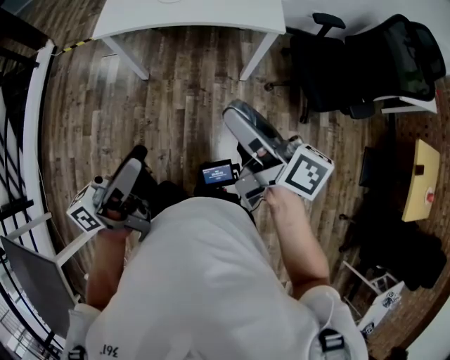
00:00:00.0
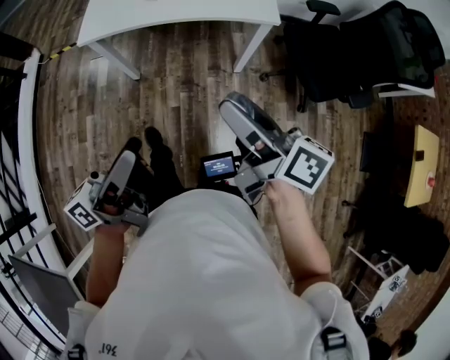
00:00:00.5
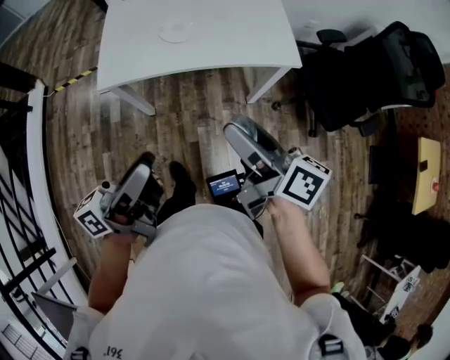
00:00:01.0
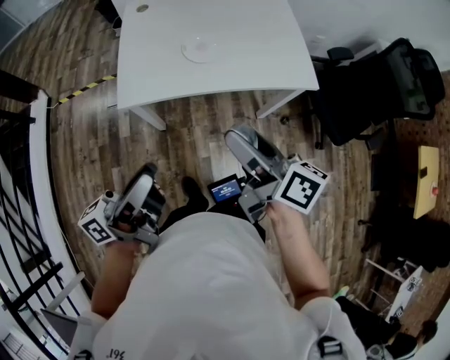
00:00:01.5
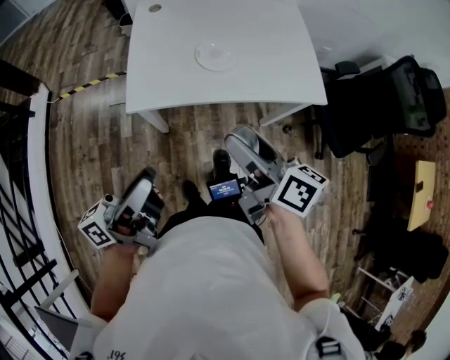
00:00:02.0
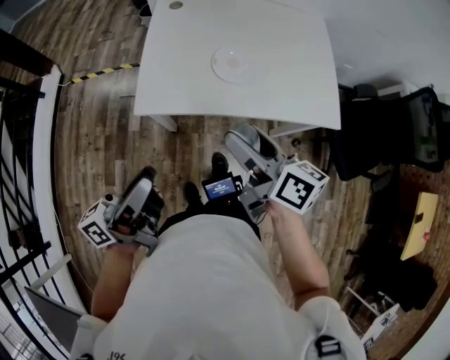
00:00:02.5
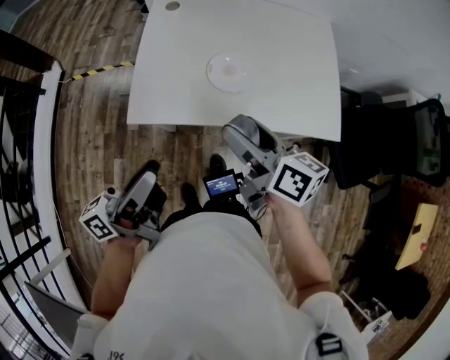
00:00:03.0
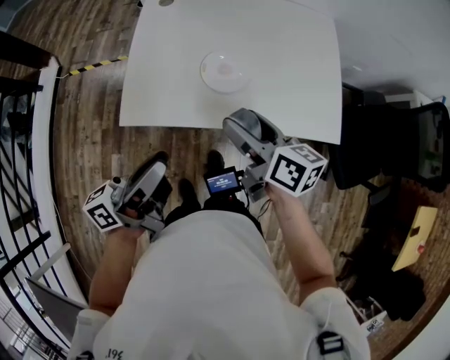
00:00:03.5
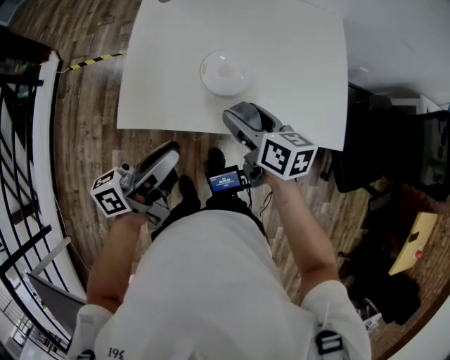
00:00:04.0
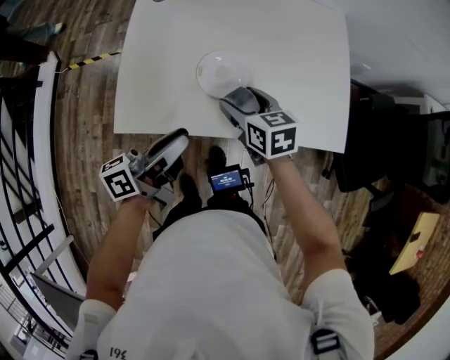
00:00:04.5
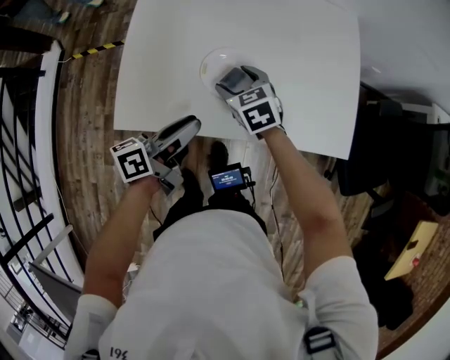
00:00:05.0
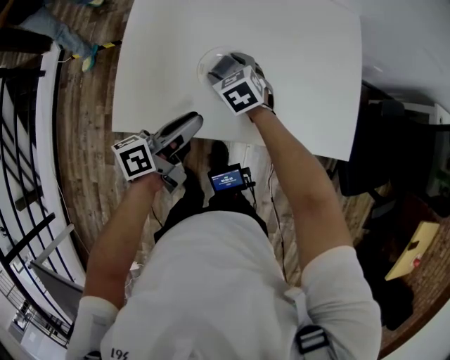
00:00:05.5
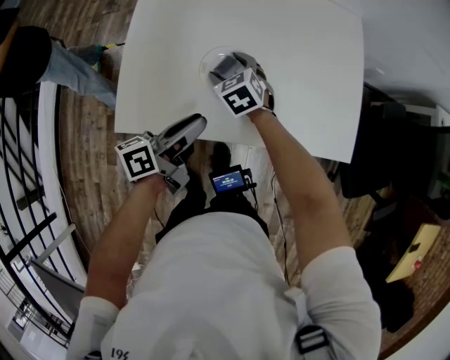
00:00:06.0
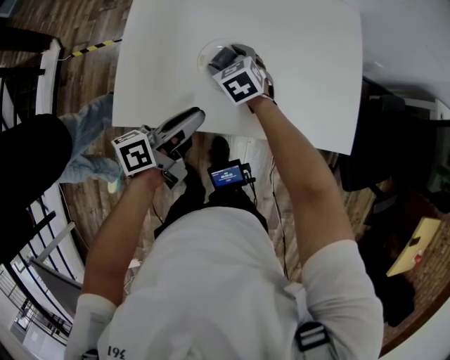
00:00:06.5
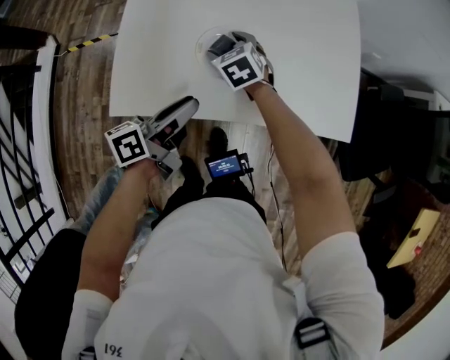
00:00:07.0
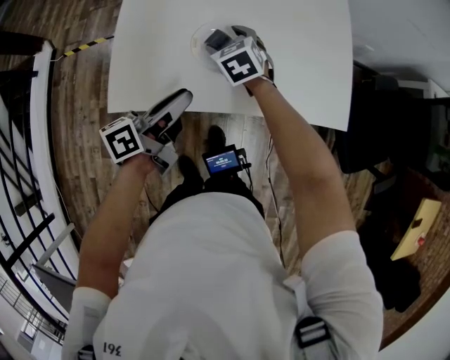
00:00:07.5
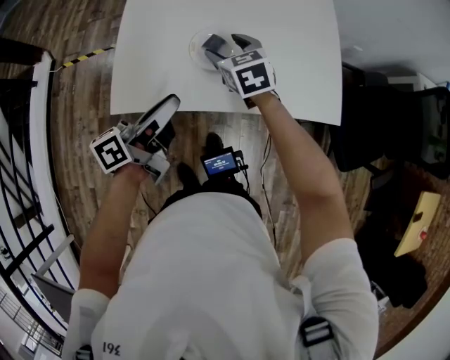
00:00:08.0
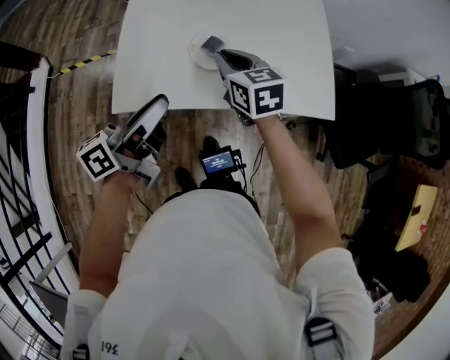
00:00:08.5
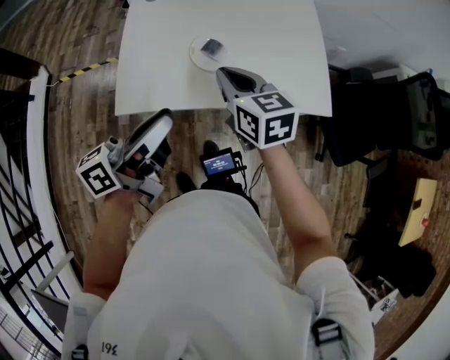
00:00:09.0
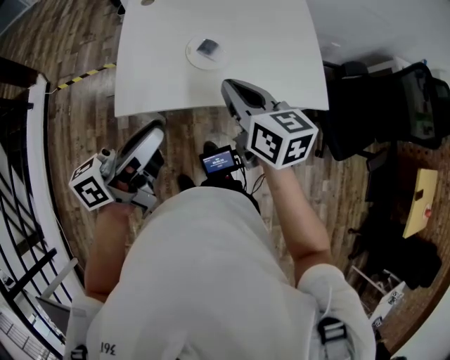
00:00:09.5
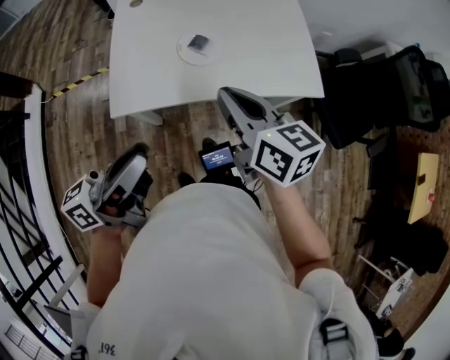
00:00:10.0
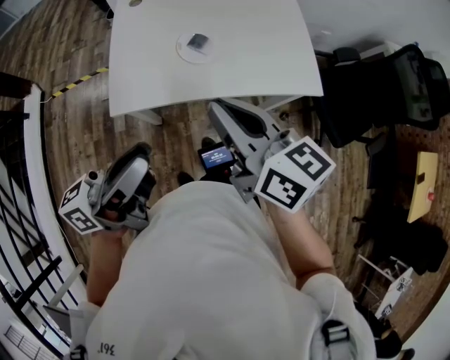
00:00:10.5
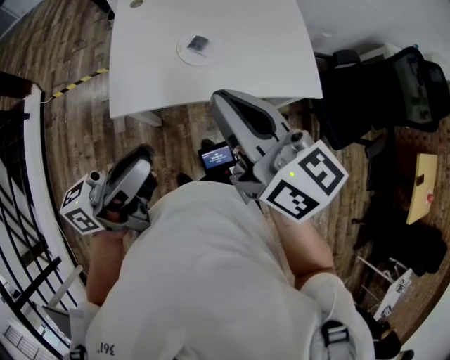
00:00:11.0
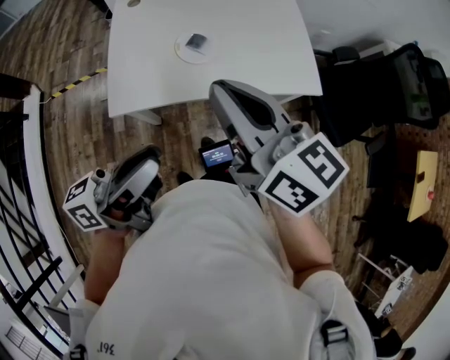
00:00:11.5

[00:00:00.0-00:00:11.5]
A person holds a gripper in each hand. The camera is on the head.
00:00:00.0 to 00:00:02.0: Both grippers move to the left and forward, about 35 cm.
00:00:02.0 to 00:00:04.0: The left gripper is displaced forward and to the right by approximately 20 cm. Meanwhile the right gripper shifts about 25 cm forward and downward, and changes its angle by about 20 degrees.
00:00:04.0 to 00:00:06.0: The right gripper is displaced forward, downward and to the left by about 20 cm, and twists about 50 degrees counterclockwise, seen from behind; the left gripper is displaced downward and forward by some 15 cm.
00:00:06.0 to 00:00:07.5: There are only small adjustments of the grippers.
00:00:07.5 to 00:00:09.5: The right gripper moves backward and upward, roughly 30 cm, changes its angle by roughly 40 degrees, and closes up. The left gripper moves upward and backward, about 20 cm, and turns by some 20 degrees.
00:00:09.5 to 00:00:11.5: The left gripper travels backward by roughly 5 cm, while the right gripper travels upward and backward by roughly 15 cm.

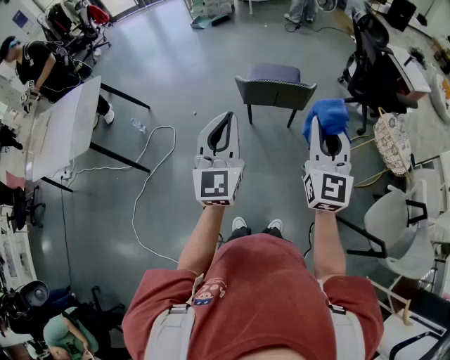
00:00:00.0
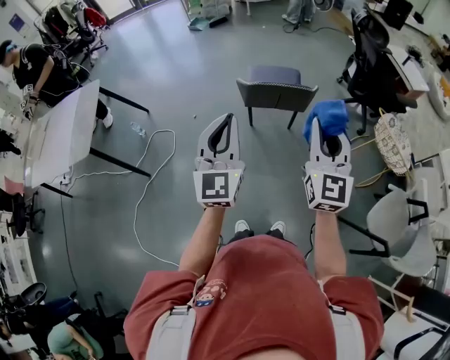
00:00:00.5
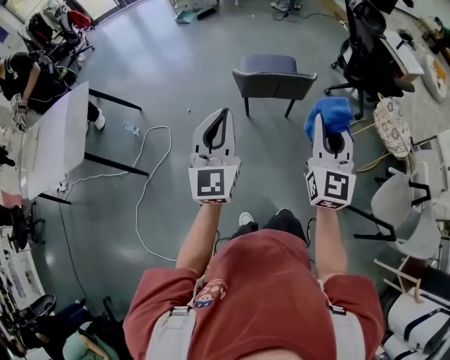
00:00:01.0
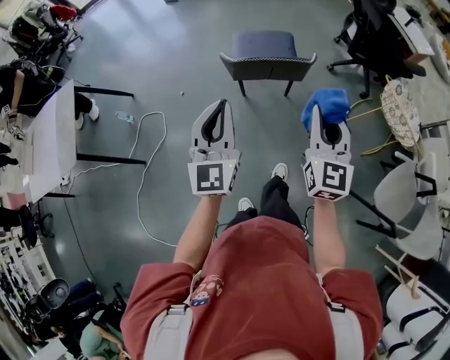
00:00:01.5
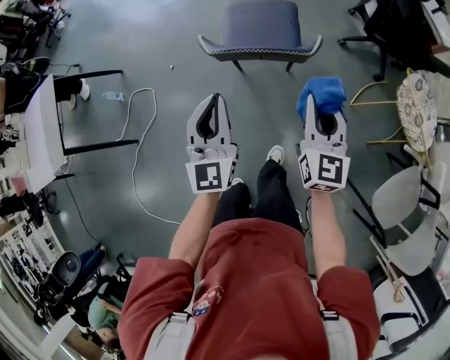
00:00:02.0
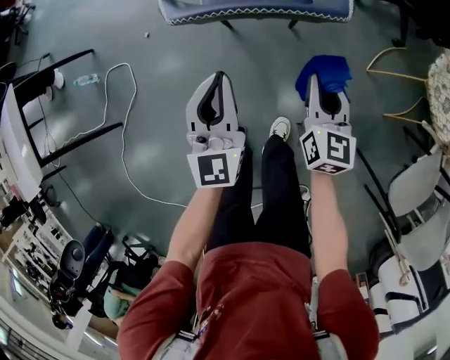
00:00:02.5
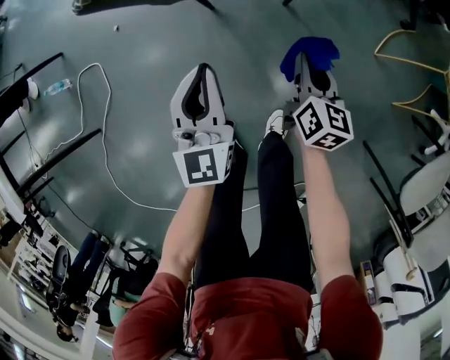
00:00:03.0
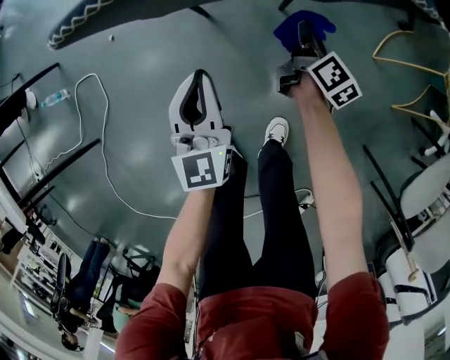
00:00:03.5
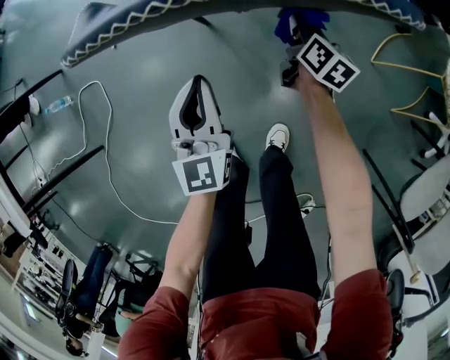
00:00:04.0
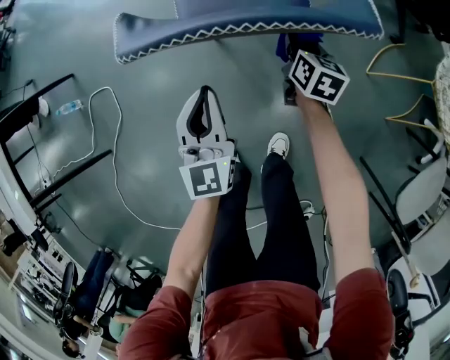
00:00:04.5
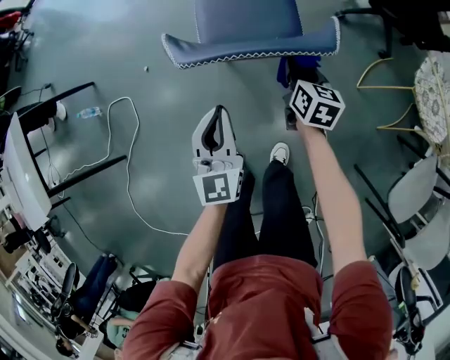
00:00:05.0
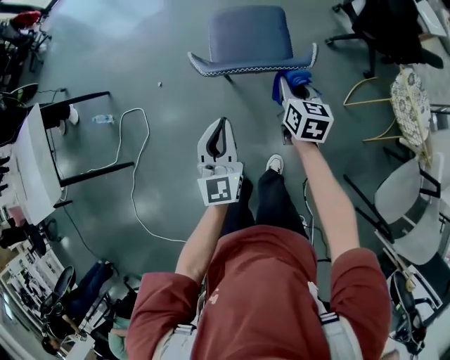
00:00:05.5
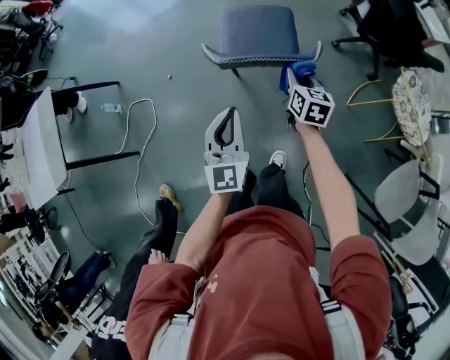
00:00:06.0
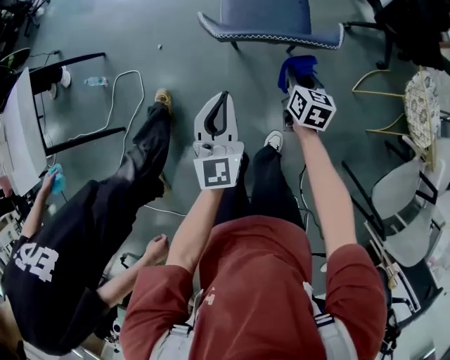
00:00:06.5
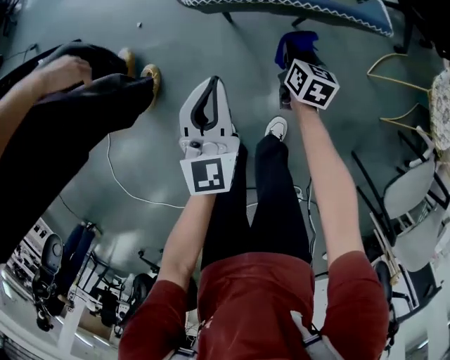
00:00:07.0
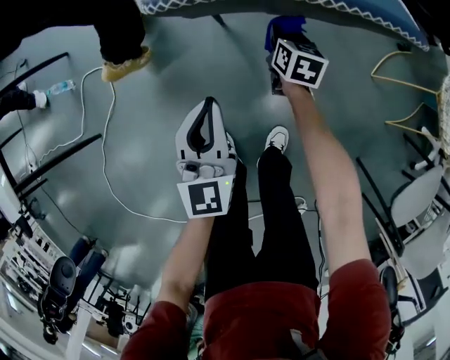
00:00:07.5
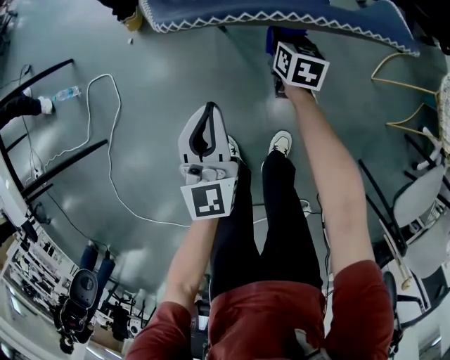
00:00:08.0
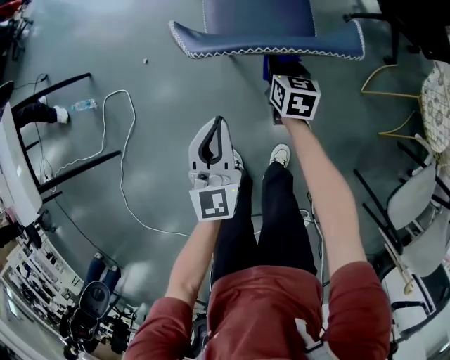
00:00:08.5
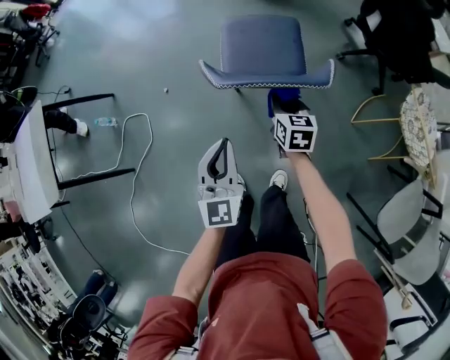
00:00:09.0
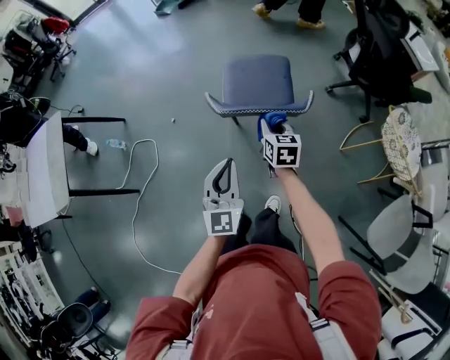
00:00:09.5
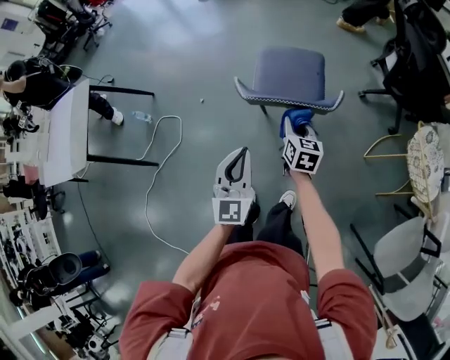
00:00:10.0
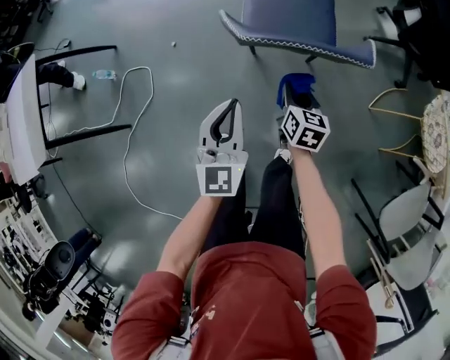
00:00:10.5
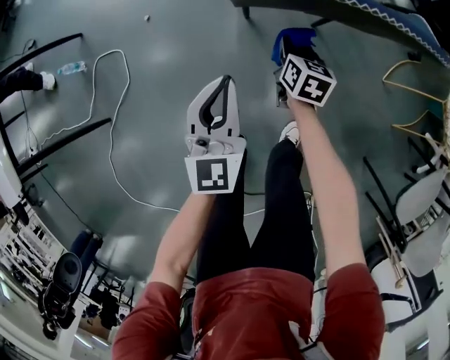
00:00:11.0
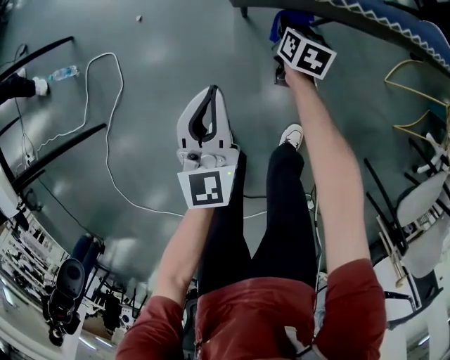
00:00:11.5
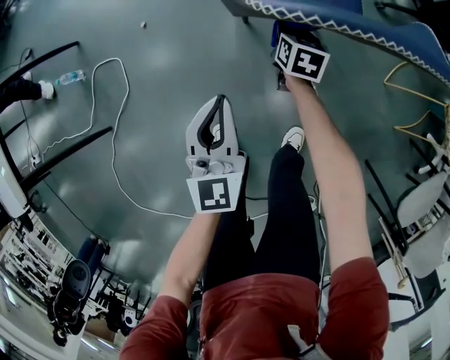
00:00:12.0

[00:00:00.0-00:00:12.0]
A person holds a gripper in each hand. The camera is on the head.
00:00:00.0 to 00:00:02.0: The left gripper is displaced forward and downward by some 30 cm; the right gripper moves downward and forward, some 30 cm, and changes its angle by approximately 20 degrees.
00:00:02.0 to 00:00:04.0: The right gripper is displaced downward and forward by about 50 cm, and turns by approximately 40 degrees, while the left gripper heads downward, covering roughly 35 cm.
00:00:04.0 to 00:00:06.0: The two grippers go approximately 35 cm upward. The right gripper turns by approximately 20 degrees.
00:00:06.0 to 00:00:08.0: Both grippers travel together downward, about 30 cm.
00:00:08.0 to 00:00:10.0: Both grippers travel together upward, roughly 30 cm.
00:00:10.0 to 00:00:12.0: The left gripper shifts about 30 cm downward and to the left, while the right gripper moves downward, some 35 cm.

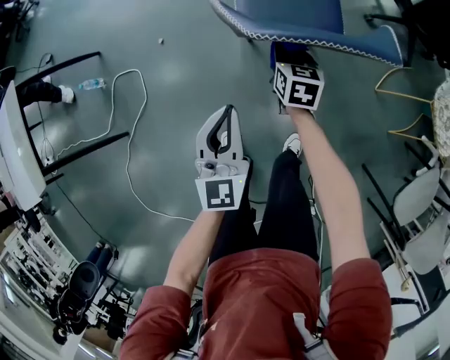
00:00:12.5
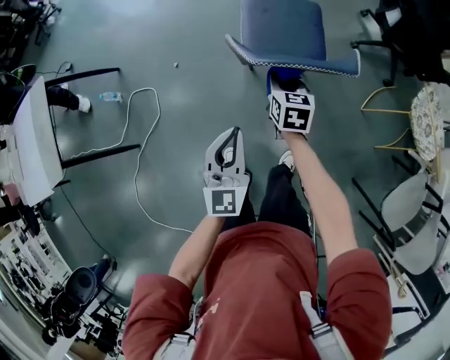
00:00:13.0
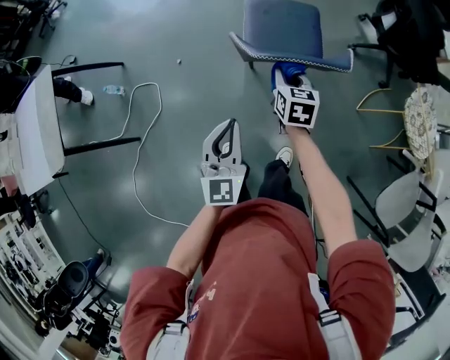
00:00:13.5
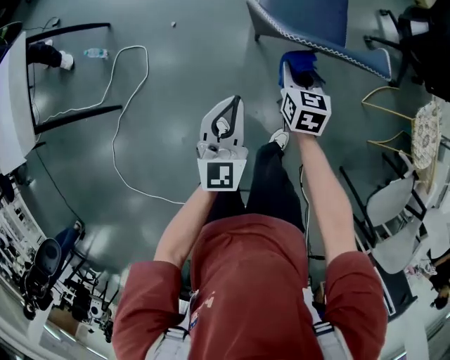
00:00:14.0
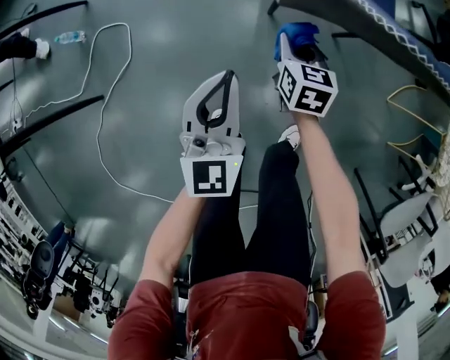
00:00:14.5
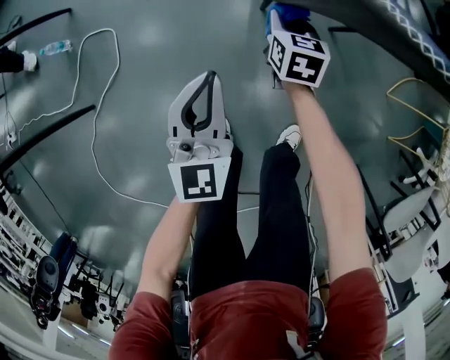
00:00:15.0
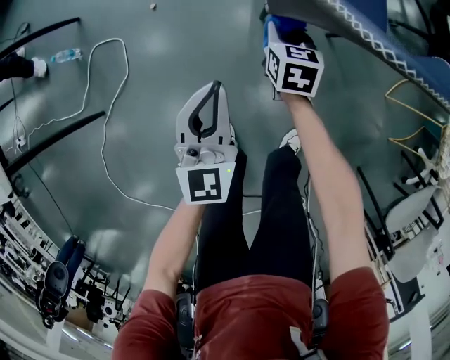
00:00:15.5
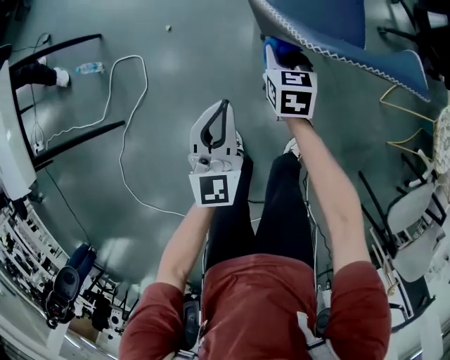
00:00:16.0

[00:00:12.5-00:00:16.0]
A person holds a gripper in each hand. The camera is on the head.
00:00:12.5 to 00:00:14.5: The two grippers go about 15 cm downward and to the left.
00:00:14.5 to 00:00:16.0: The grippers both shift upward by roughly 10 cm.
